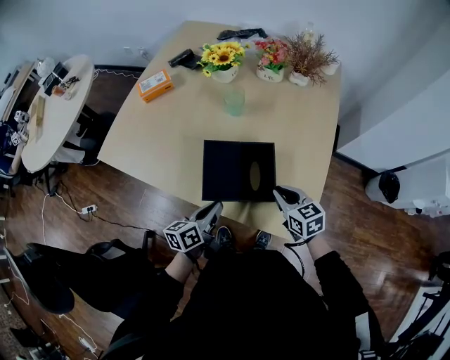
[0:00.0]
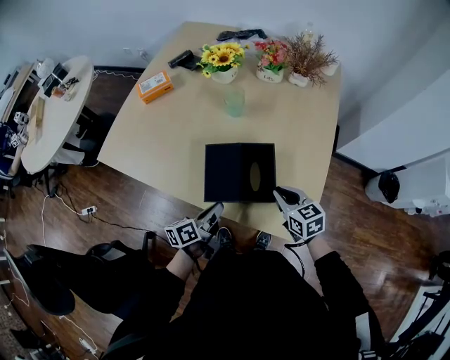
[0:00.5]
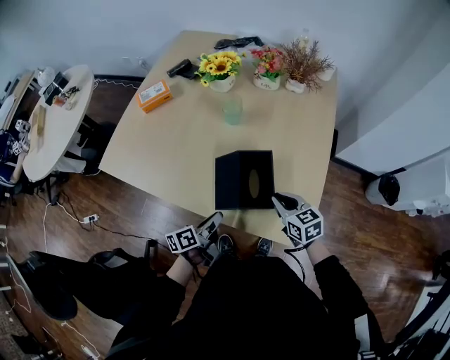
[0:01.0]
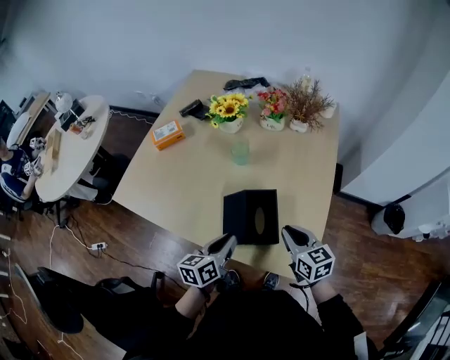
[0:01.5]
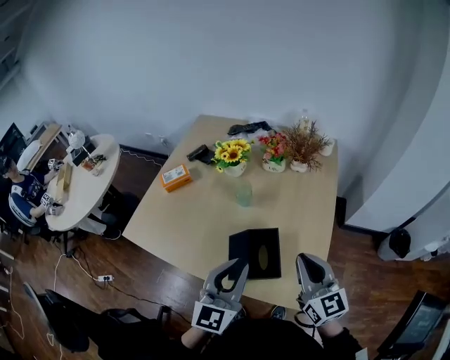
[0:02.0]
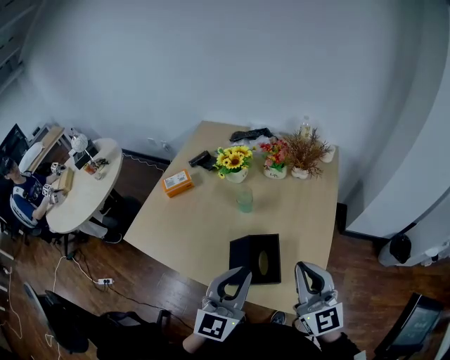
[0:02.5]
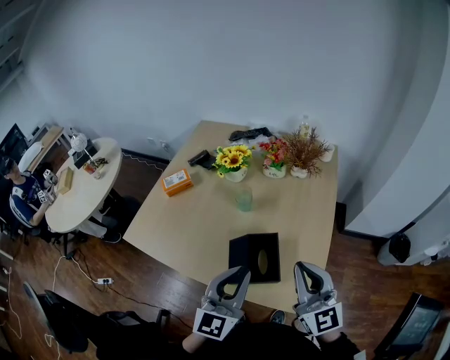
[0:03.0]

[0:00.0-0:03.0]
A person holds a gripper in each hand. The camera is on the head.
0.0 to 1.5 s: The grippers both shift upward by roughly 5 cm.
1.5 to 3.0 s: Both grippers move upward, about 20 cm. The right gripper angles its fingers upward, by roughly 30 degrees; the left gripper rolls clockwise, seen from behind, by roughly 40 degrees.

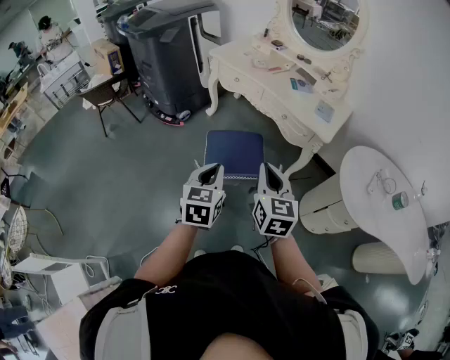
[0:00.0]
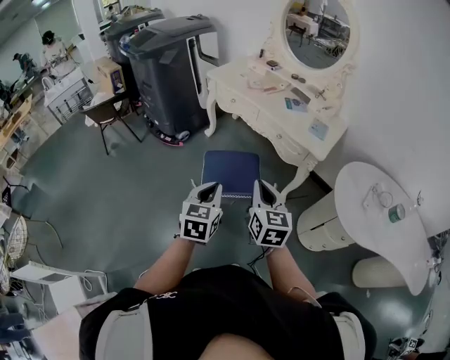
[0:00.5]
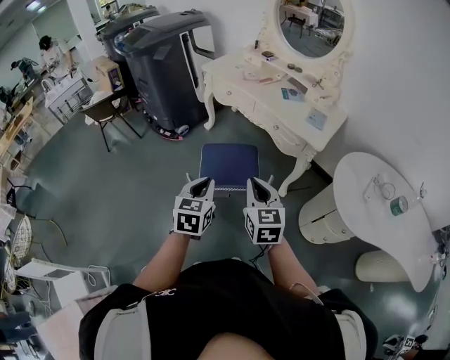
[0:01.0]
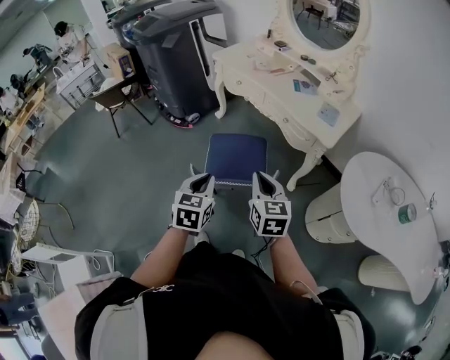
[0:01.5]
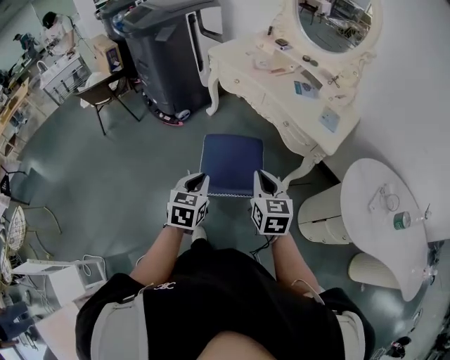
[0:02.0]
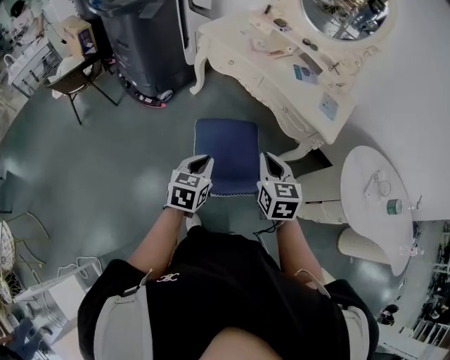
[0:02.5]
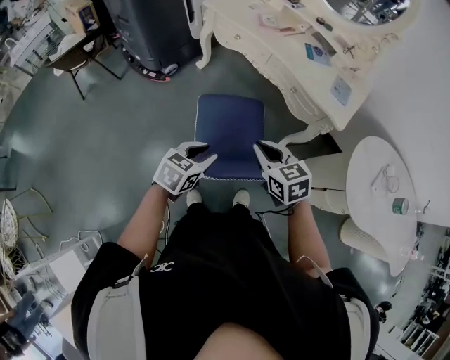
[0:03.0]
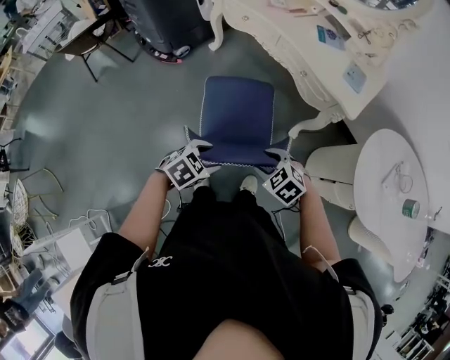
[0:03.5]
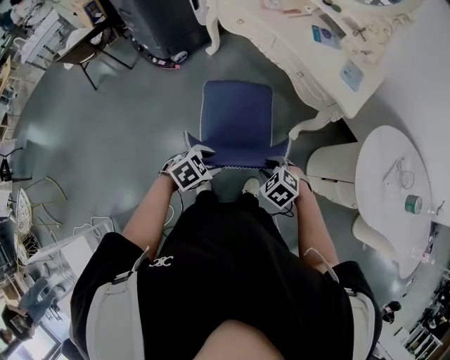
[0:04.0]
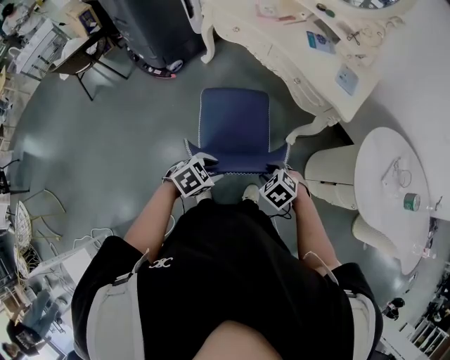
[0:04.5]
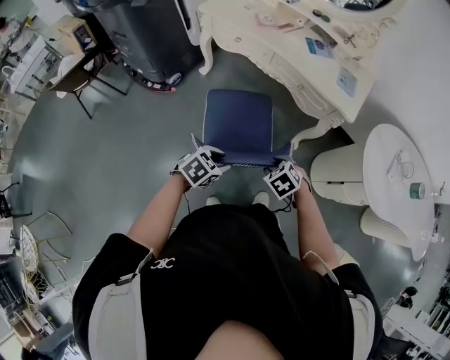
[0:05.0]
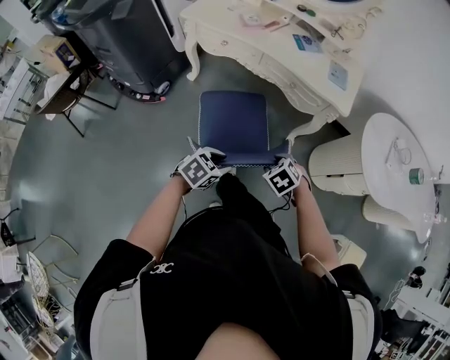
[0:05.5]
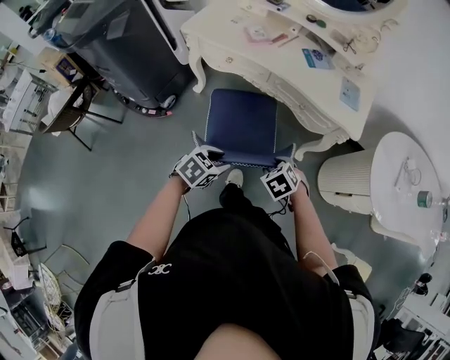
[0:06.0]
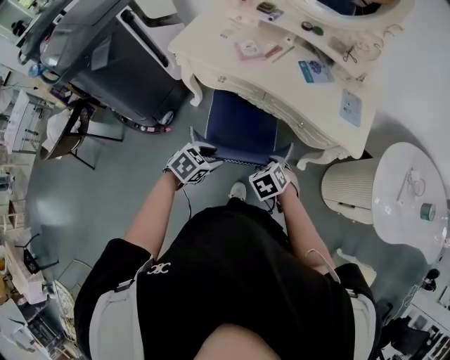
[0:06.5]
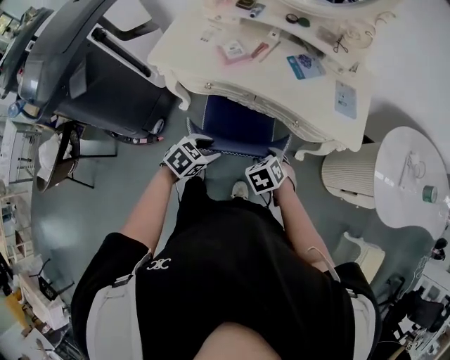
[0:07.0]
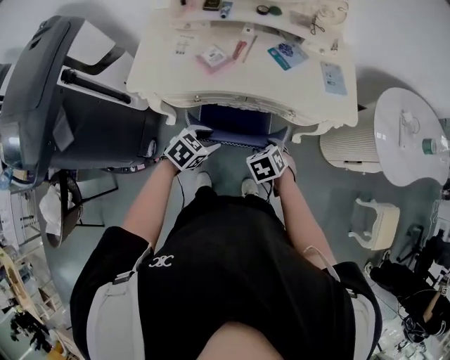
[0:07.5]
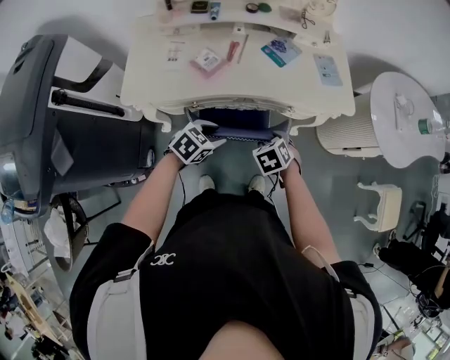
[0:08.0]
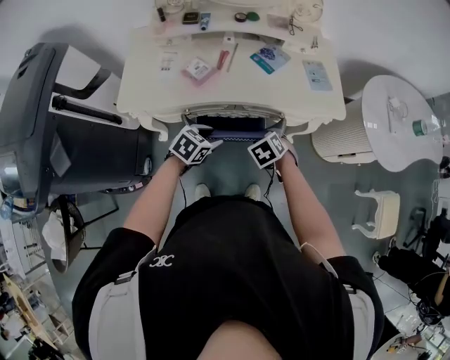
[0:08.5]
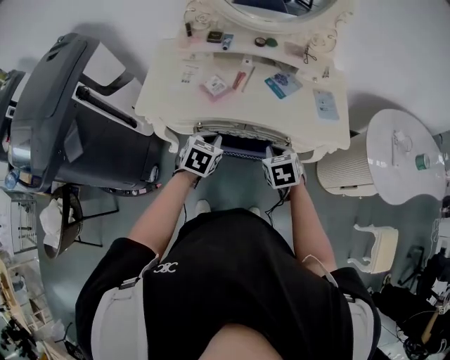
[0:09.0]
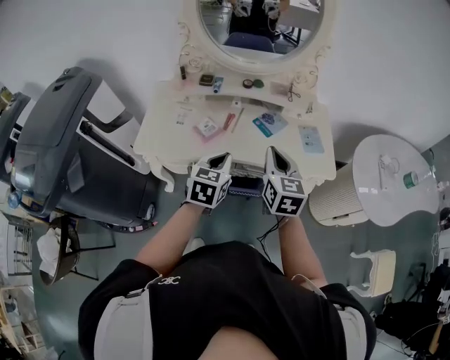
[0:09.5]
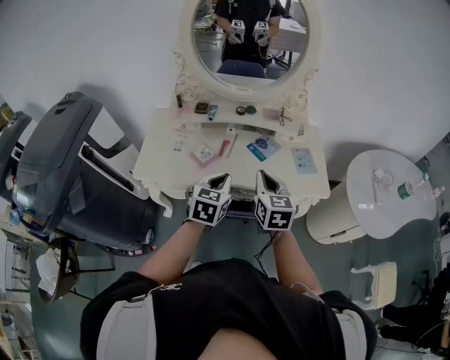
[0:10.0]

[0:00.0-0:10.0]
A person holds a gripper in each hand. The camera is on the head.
0.0 to 2.0 s: The right gripper goes approximately 10 cm forward and downward. The left gripper is displaced downward and forward by about 10 cm.
2.0 to 4.0 s: The grippers both shift downward by approximately 15 cm. The right gripper tips its fingers downward by about 40 degrees, and opens up; the left gripper rotates some 50 degrees, and opens.
4.0 to 6.0 s: Both grippers travel together forward and to the left, roughly 20 cm. The right gripper swivels roughly 30 degrees.
6.0 to 8.0 s: The left gripper shifts by some 30 cm, and changes its angle by about 30 degrees; the right gripper changes place by about 25 cm, and turns by some 40 degrees.
8.0 to 10.0 s: Both grippers travel together upward, some 20 cm. The left gripper turns by about 40 degrees, and closes its fingers; the right gripper tilts its fingers some 50 degrees upward, and closes.

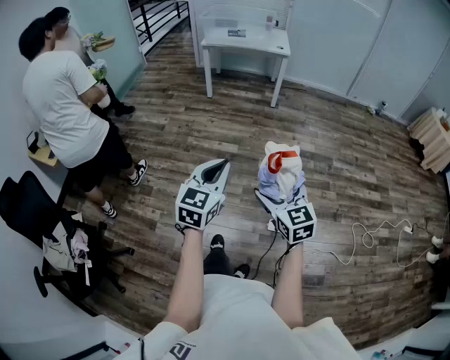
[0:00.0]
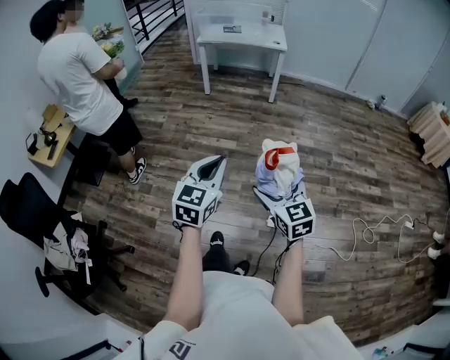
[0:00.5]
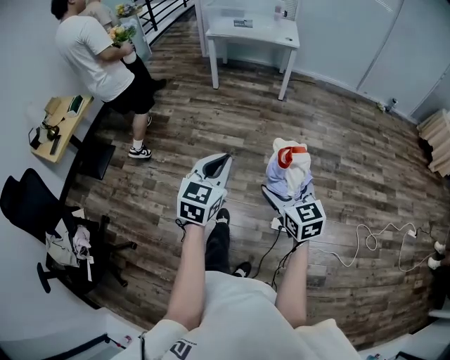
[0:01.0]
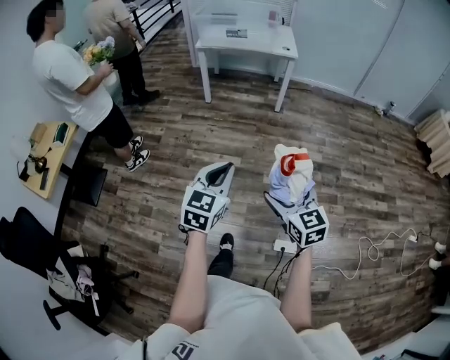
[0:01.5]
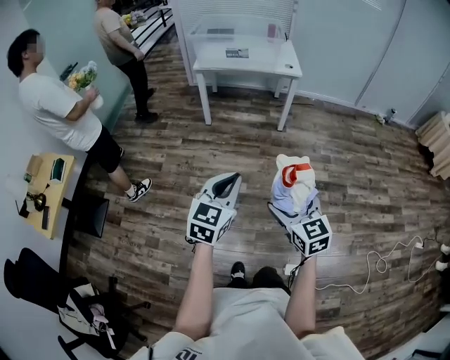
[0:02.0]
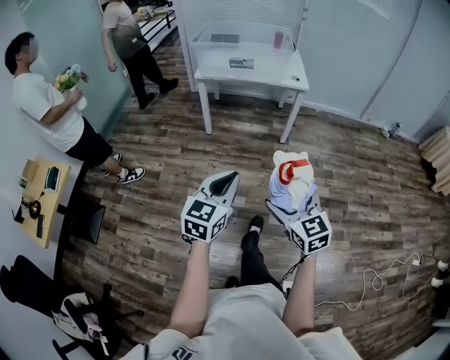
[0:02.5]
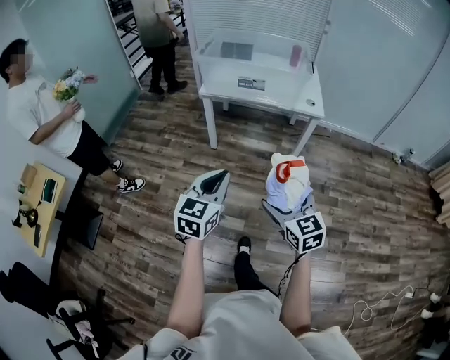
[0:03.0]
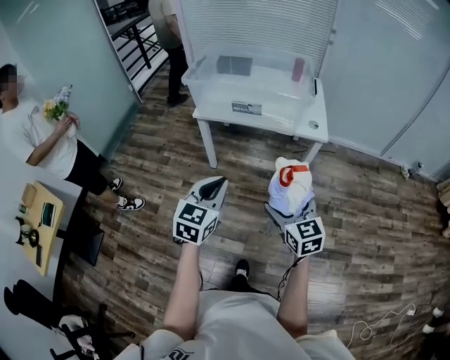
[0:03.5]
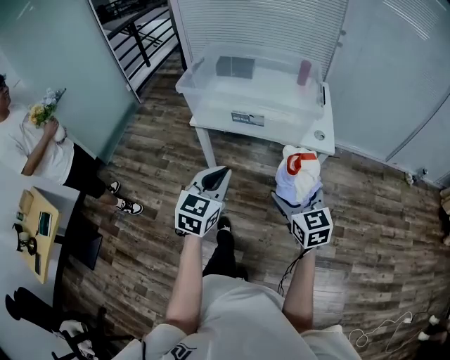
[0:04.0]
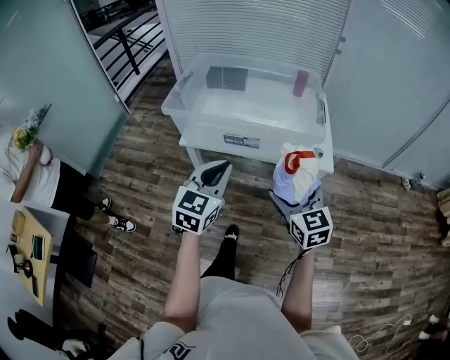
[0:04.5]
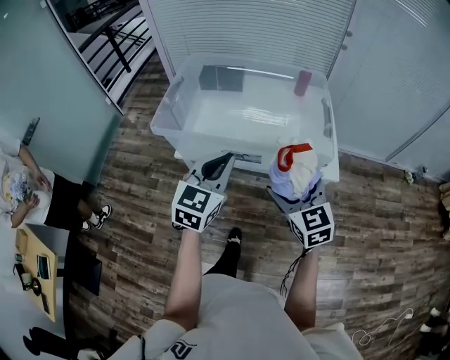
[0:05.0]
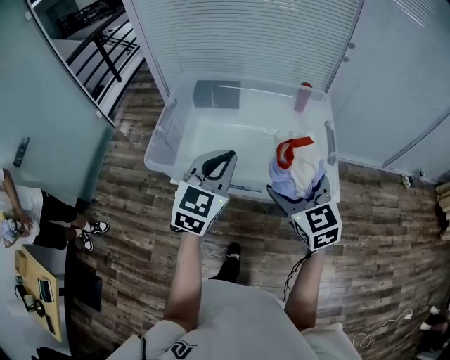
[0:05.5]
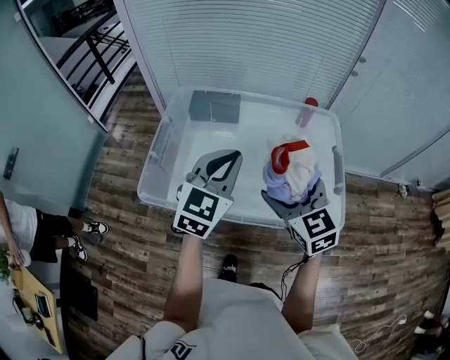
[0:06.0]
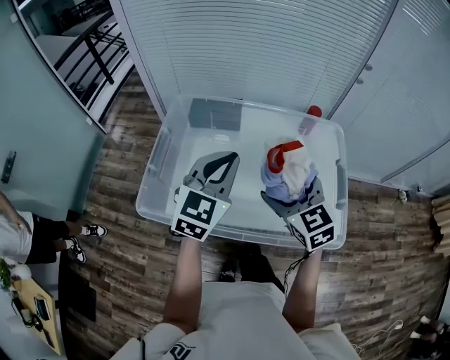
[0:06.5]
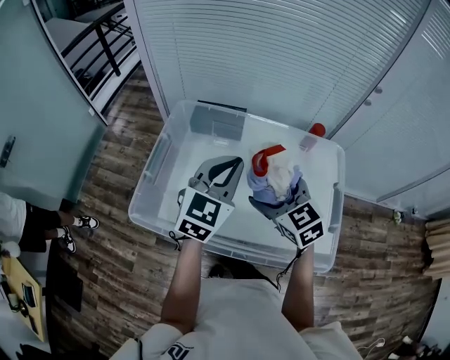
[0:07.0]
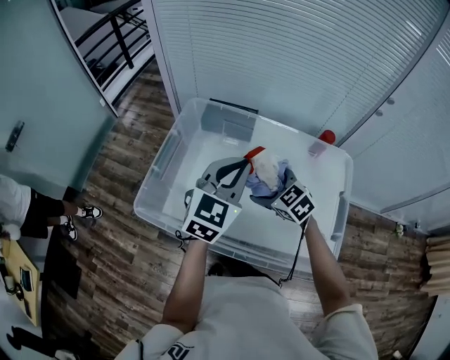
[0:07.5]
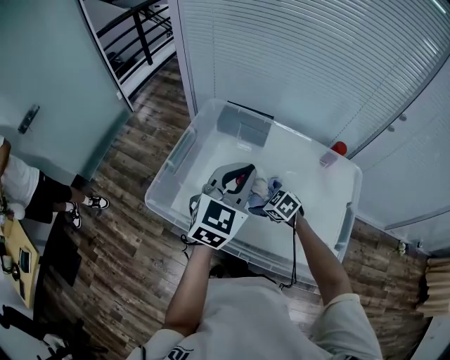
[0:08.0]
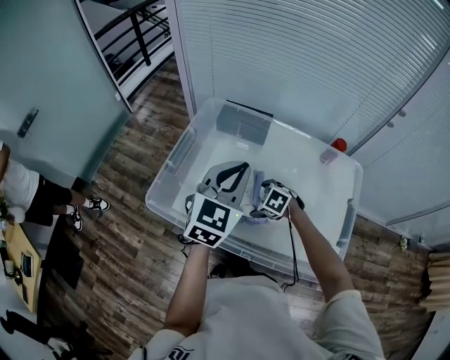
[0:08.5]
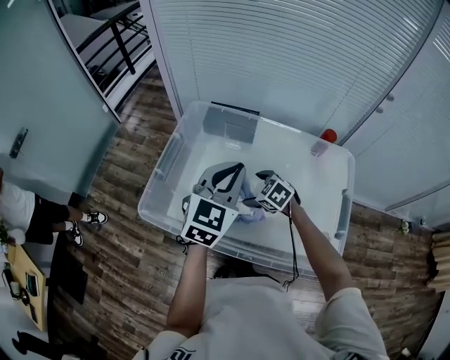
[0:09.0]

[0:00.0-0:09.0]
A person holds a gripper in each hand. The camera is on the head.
0.0 to 2.0 s: The two grippers go some 35 cm forward.
2.0 to 4.5 s: The pair of grippers is taken forward, about 70 cm.
4.5 to 7.0 s: Both grippers move forward, approximately 40 cm. The right gripper changes its angle by about 20 degrees.
7.0 to 9.0 s: The right gripper shifts about 20 cm downward, and changes its angle by roughly 30 degrees.

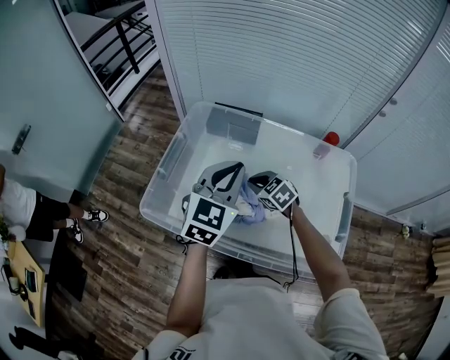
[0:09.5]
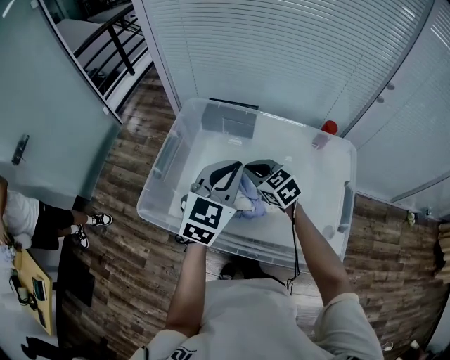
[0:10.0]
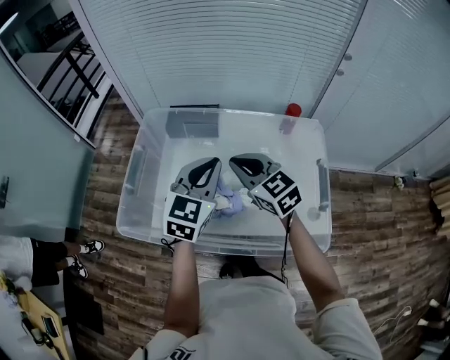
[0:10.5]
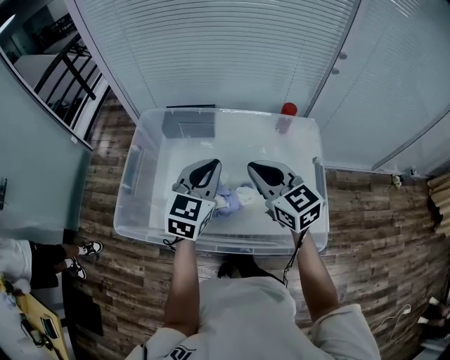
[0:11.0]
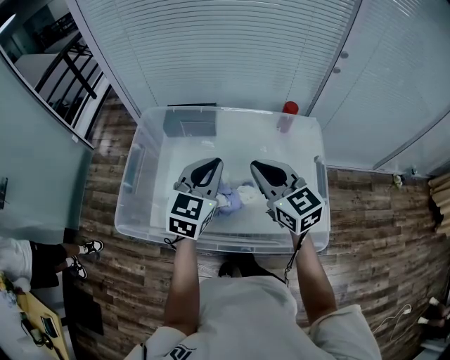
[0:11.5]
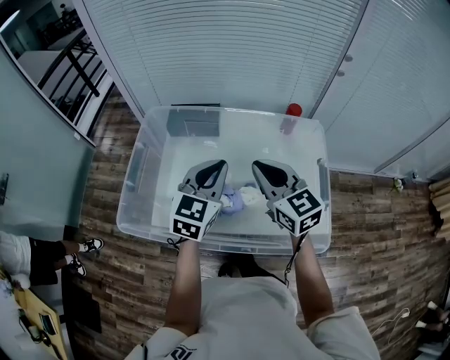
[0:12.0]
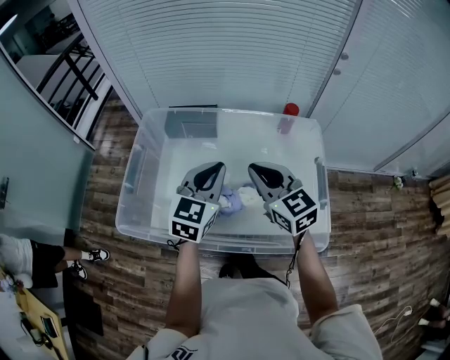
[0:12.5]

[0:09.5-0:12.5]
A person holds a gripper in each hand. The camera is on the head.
9.5 to 11.0 s: The right gripper moves upward and to the right, some 20 cm, and tips its fingers upward by some 30 degrees. Meanwhile the left gripper heads to the right, covering roughly 5 cm.
11.0 to 12.5 s: Both grippers stay about where they are.

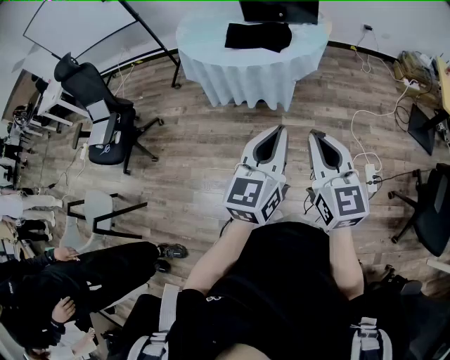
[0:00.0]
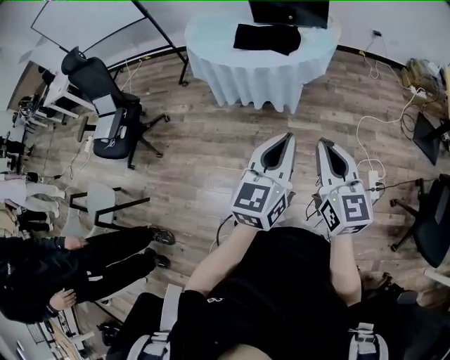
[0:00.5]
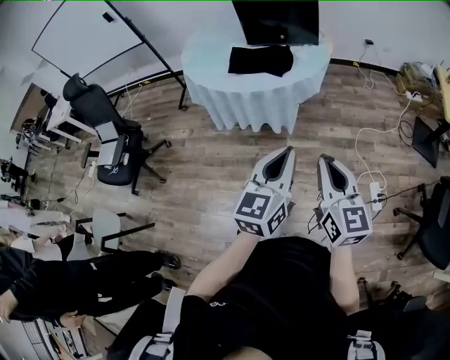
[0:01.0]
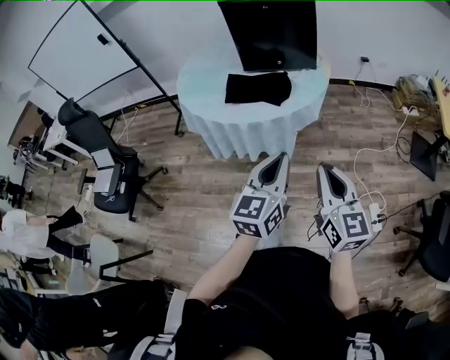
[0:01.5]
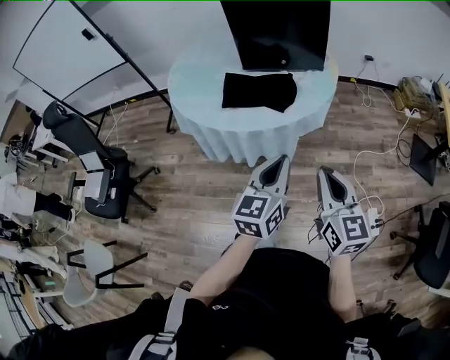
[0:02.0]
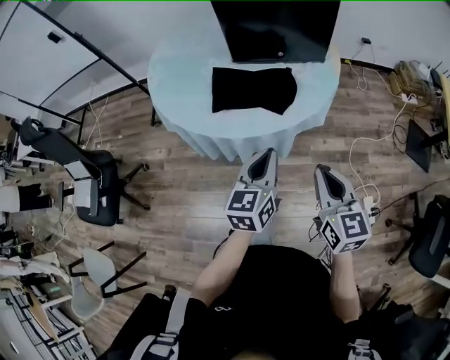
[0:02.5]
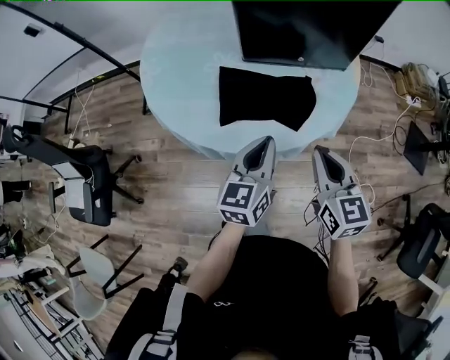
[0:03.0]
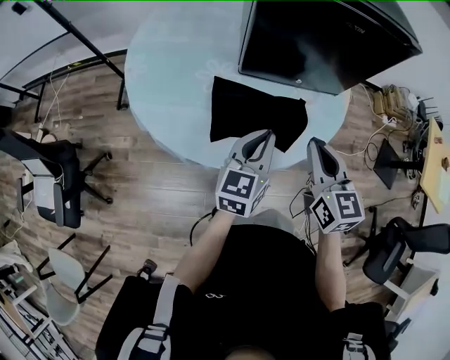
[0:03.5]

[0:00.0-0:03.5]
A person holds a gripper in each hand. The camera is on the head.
0.0 to 2.0 s: The two grippers go some 25 cm forward.
2.0 to 3.5 s: The two grippers go roughly 30 cm forward.
